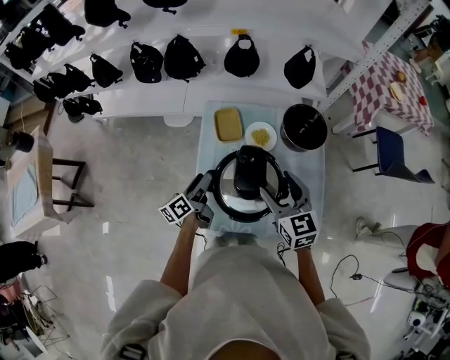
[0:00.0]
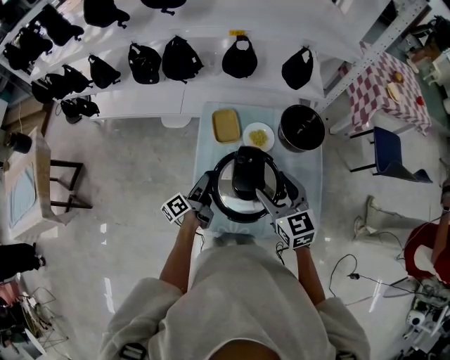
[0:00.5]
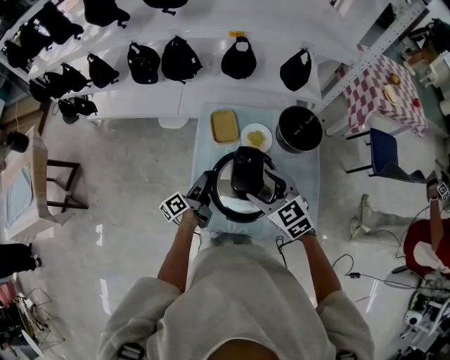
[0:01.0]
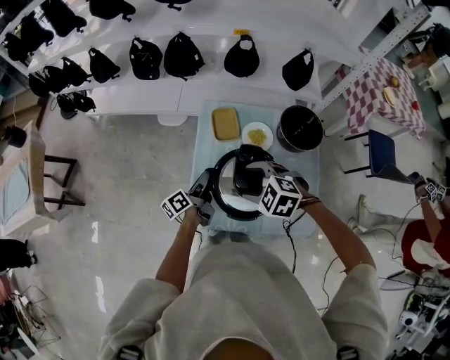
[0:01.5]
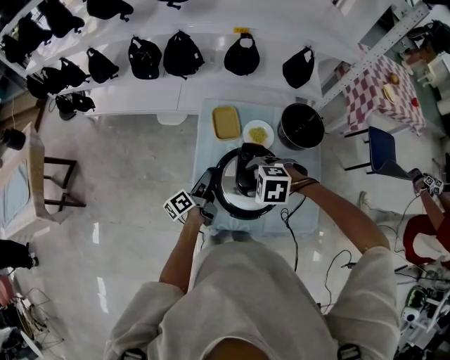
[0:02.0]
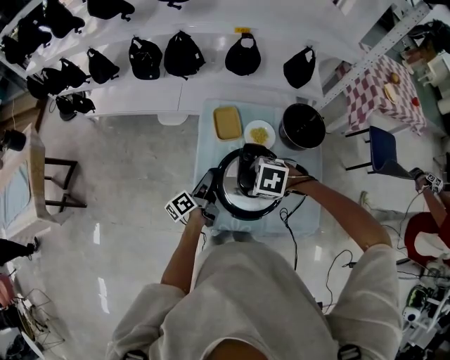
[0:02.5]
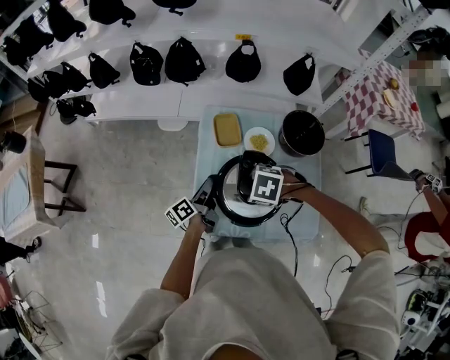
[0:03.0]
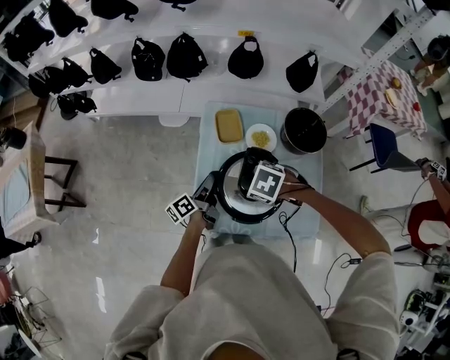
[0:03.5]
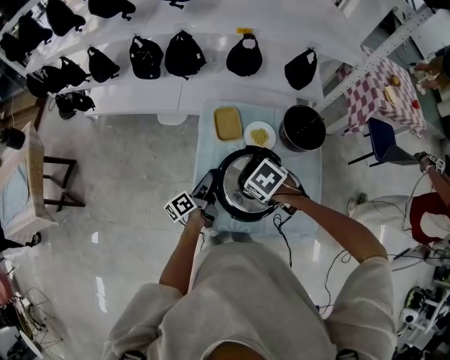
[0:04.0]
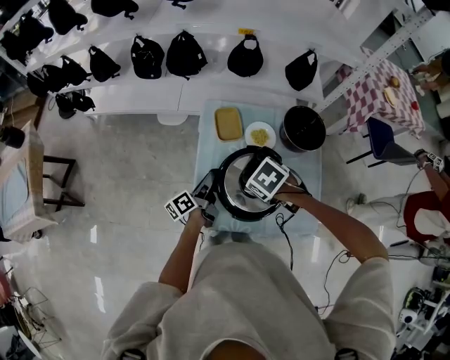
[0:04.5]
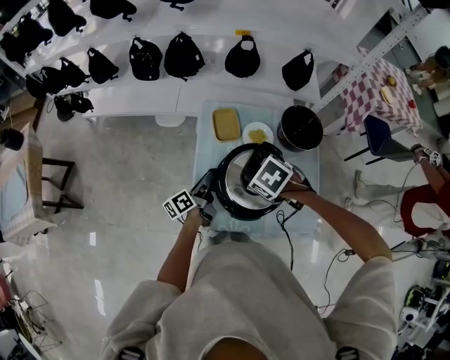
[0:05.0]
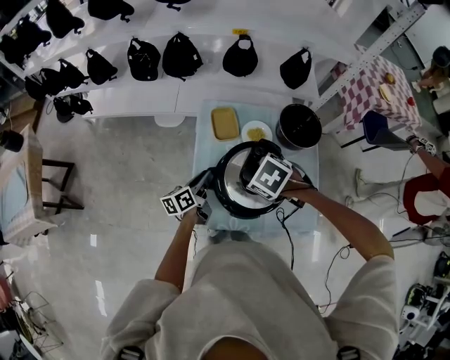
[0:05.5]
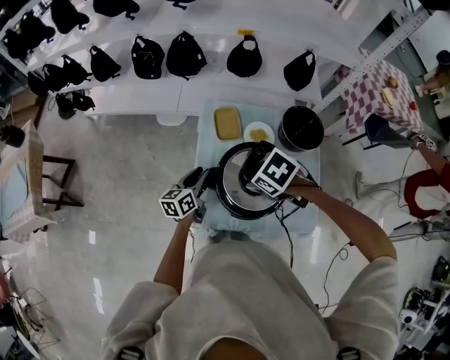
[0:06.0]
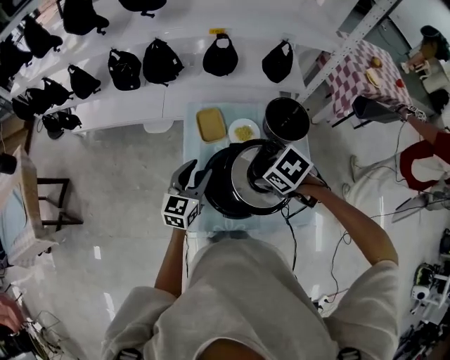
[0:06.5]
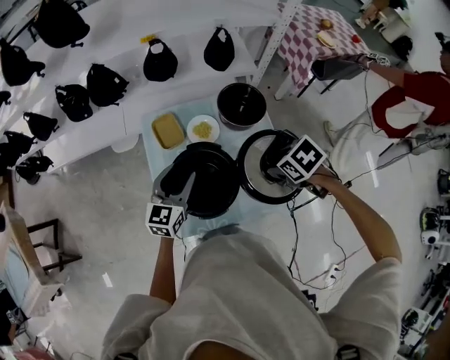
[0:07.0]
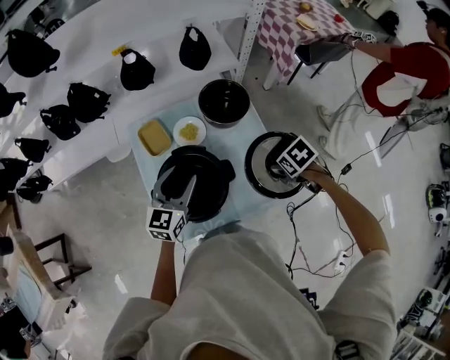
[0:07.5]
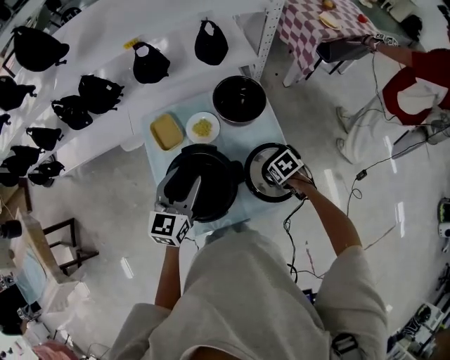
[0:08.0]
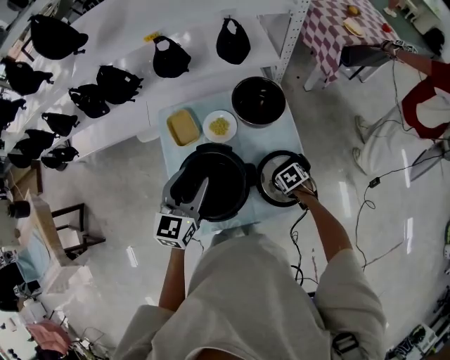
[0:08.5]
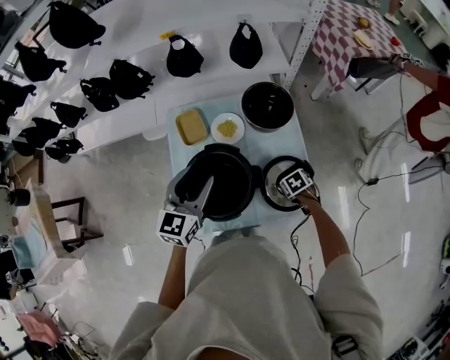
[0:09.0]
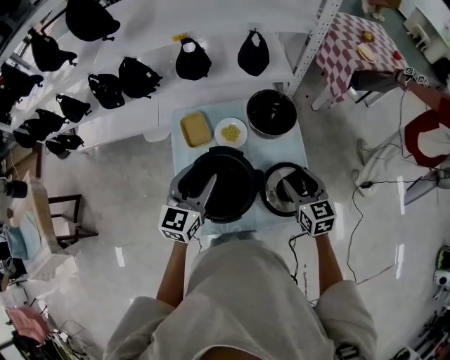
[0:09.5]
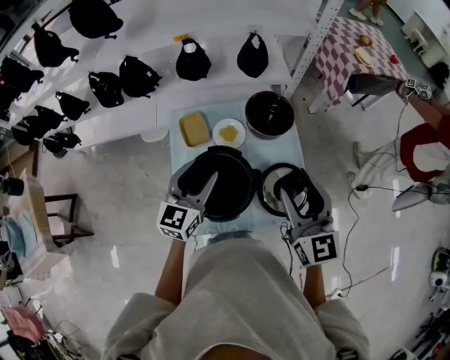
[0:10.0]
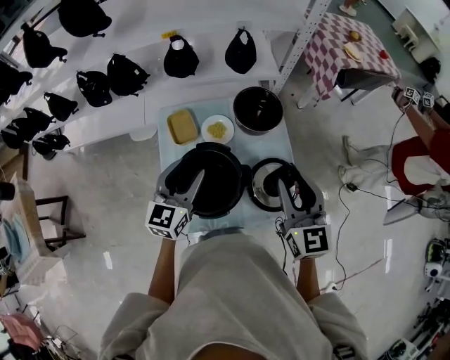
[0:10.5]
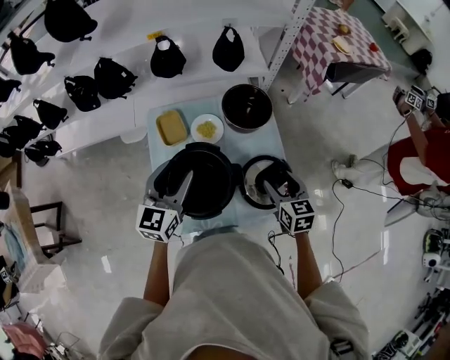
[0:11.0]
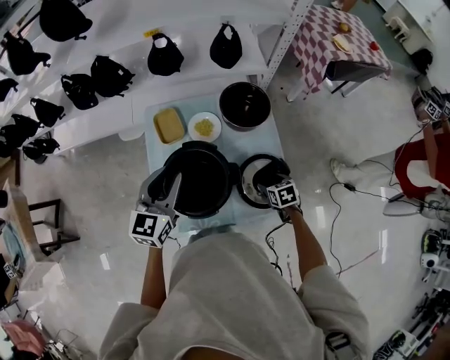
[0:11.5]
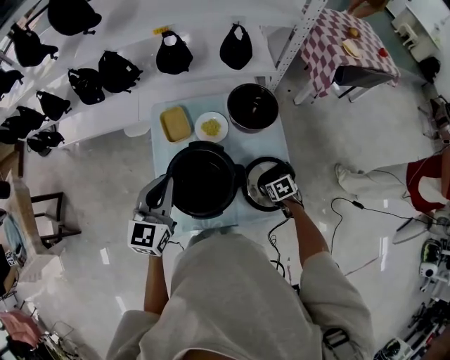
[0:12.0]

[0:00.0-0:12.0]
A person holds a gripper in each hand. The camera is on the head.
0:00.0 to 0:02.0: The right gripper travels downward by approximately 10 cm, and tips its fingers downward by approximately 50 degrees. The left gripper closes up.
0:02.0 to 0:04.0: The right gripper twists approximately 40 degrees clockwise, seen from behind.
0:04.0 to 0:06.0: The right gripper shifts roughly 5 cm upward. The left gripper swivels some 40 degrees.
0:06.0 to 0:08.0: The right gripper shifts by approximately 35 cm, and rotates approximately 40 degrees; the left gripper ends up roughly 20 cm from where it was, and rotates approximately 40 degrees.
0:08.0 to 0:10.0: The right gripper shifts about 35 cm upward, and angles its fingers upward, by roughly 70 degrees.
0:10.0 to 0:12.0: The right gripper goes approximately 40 cm downward, and tilts its fingers some 70 degrees downward; the left gripper ends up about 5 cm from where it was, and closes up.

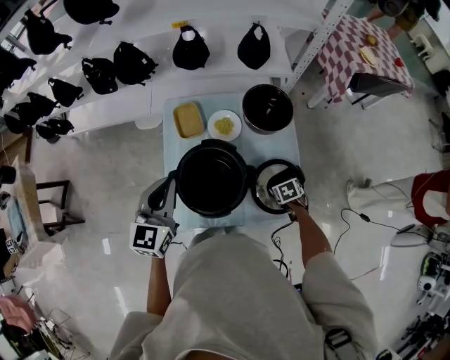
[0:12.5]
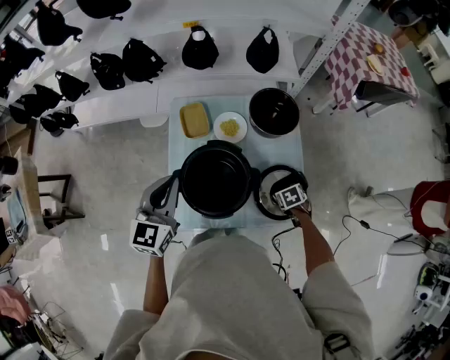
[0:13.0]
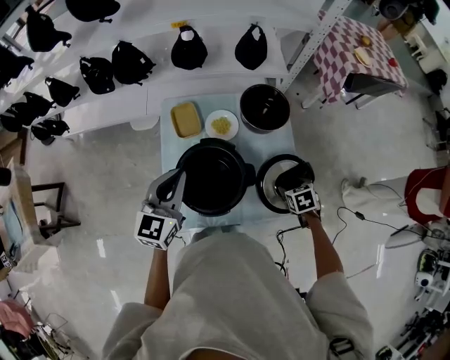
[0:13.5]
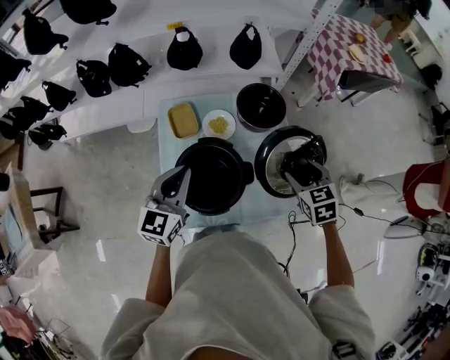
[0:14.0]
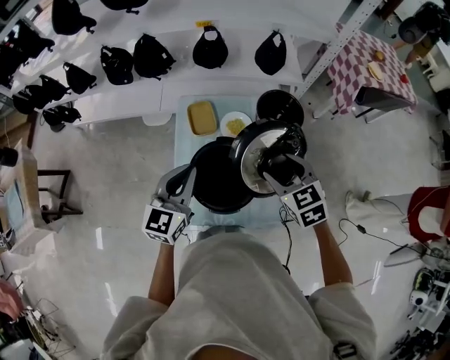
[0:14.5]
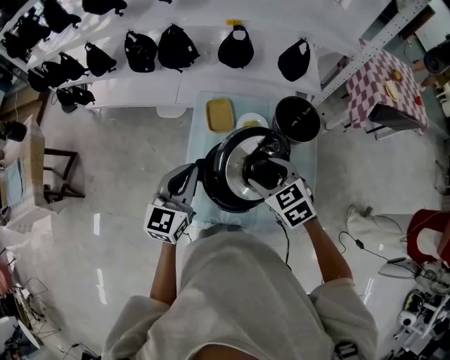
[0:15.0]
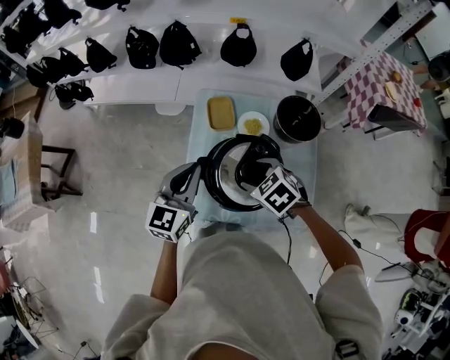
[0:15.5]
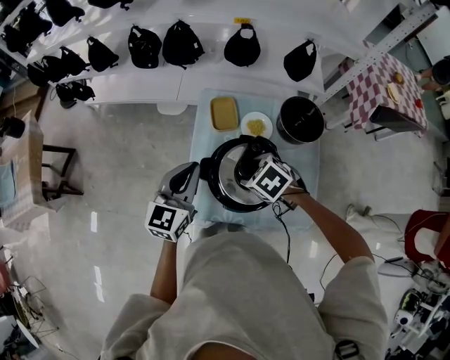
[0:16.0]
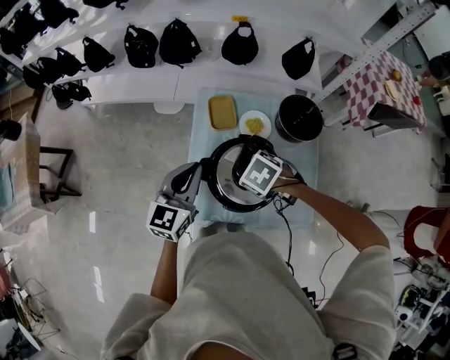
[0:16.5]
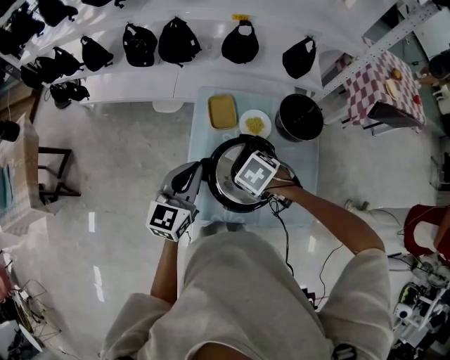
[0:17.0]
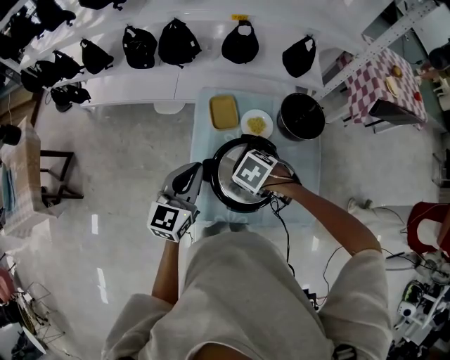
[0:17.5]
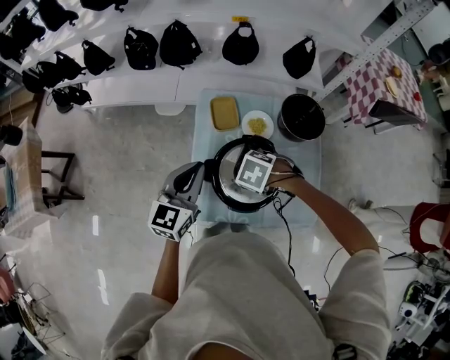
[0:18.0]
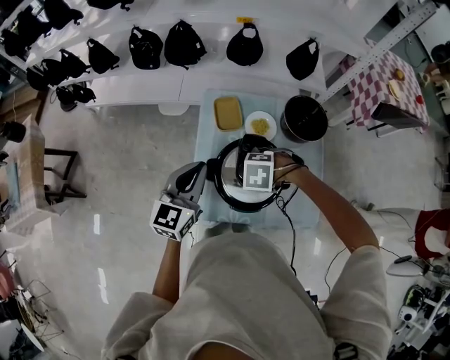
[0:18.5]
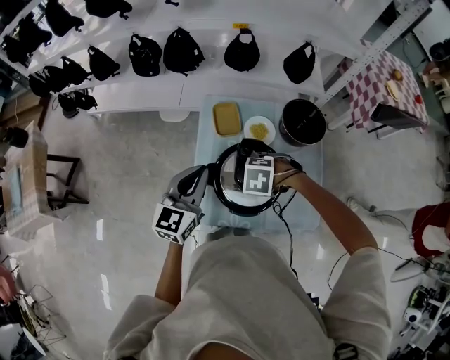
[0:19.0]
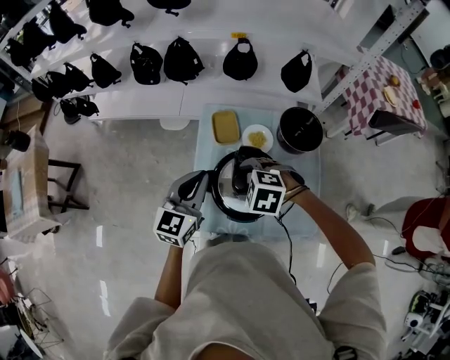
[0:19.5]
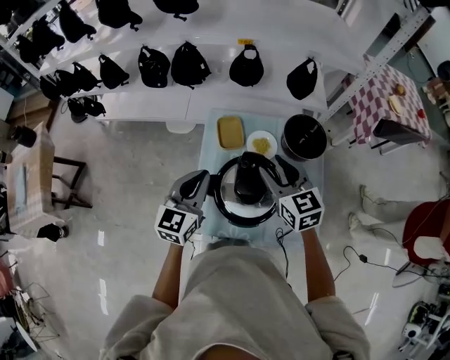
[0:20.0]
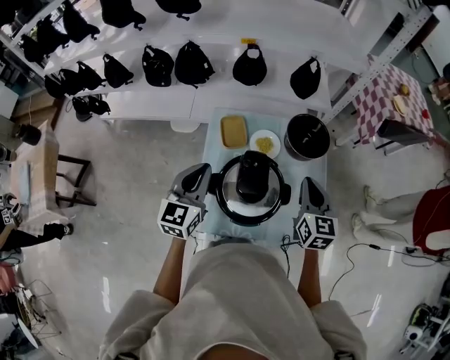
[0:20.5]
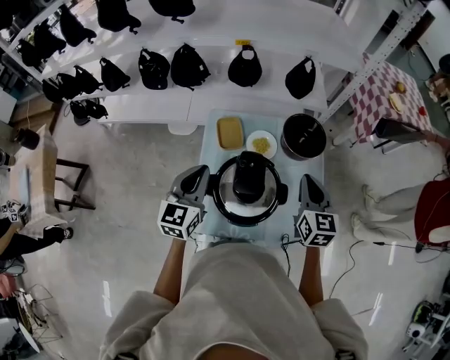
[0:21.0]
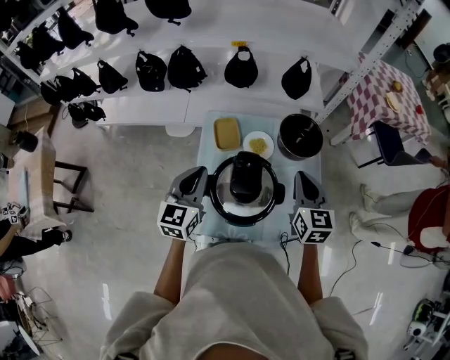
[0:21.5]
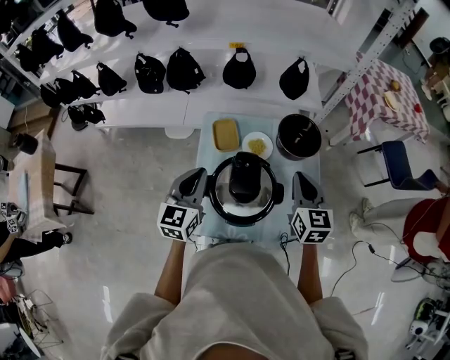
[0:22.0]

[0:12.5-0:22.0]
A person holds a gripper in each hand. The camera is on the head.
0:12.5 to 0:14.5: The right gripper goes approximately 30 cm upward, and points its fingers about 40 degrees further upward.
0:14.5 to 0:16.5: The left gripper shifts by approximately 5 cm. Meanwhile the right gripper ends up some 20 cm from where it was, and tips its fingers downward by roughly 40 degrees.
0:16.5 to 0:18.0: The grippers stay close to where they were, moving slightly.
0:18.0 to 0:20.0: The right gripper travels upward by some 15 cm, and tilts its fingers roughly 60 degrees upward.
0:20.0 to 0:22.0: The right gripper travels to the right by roughly 10 cm, rotates some 20 degrees, and closes its fingers.

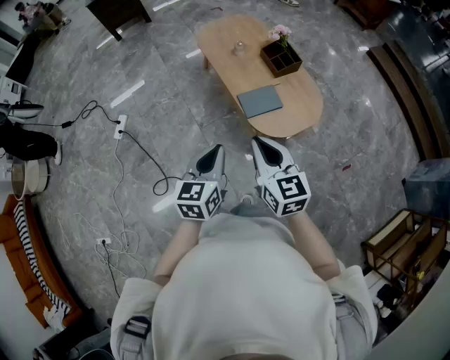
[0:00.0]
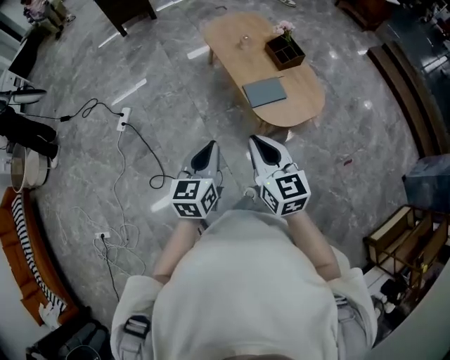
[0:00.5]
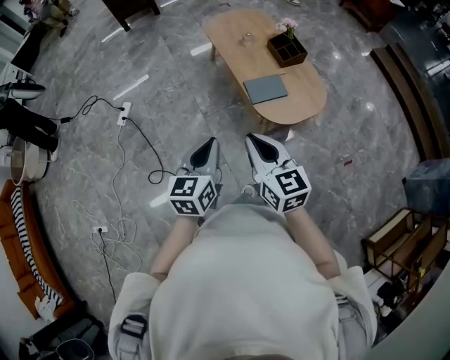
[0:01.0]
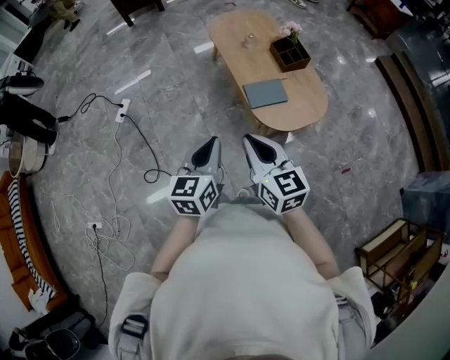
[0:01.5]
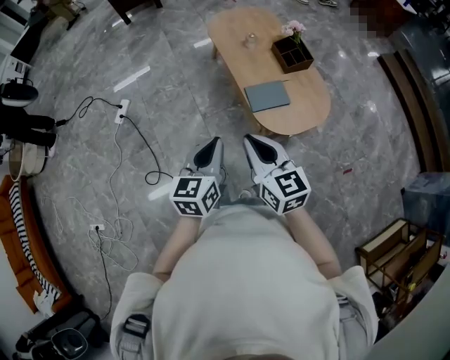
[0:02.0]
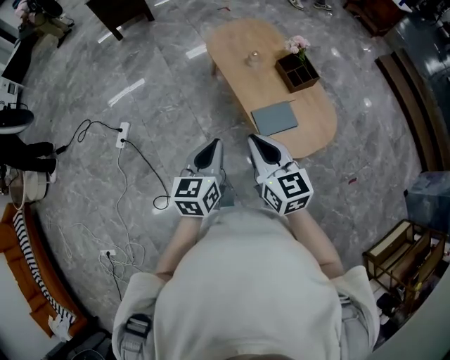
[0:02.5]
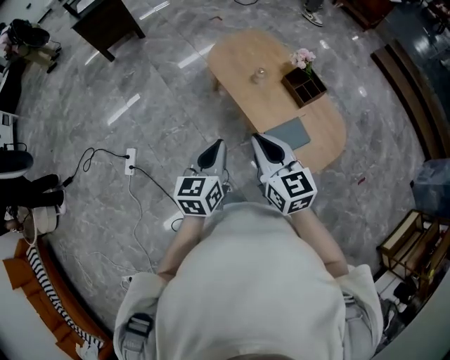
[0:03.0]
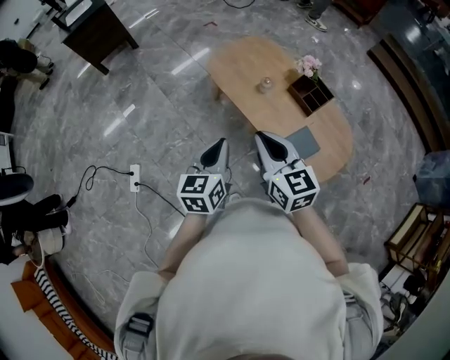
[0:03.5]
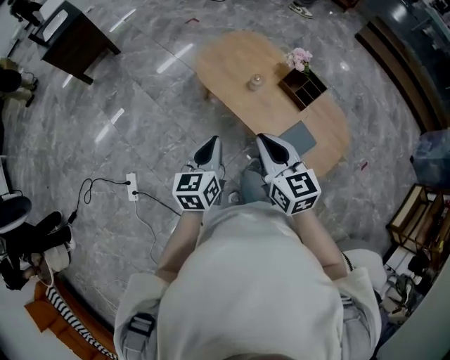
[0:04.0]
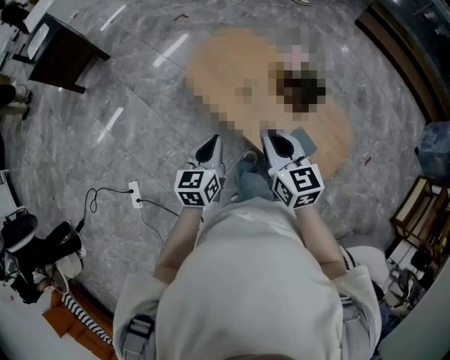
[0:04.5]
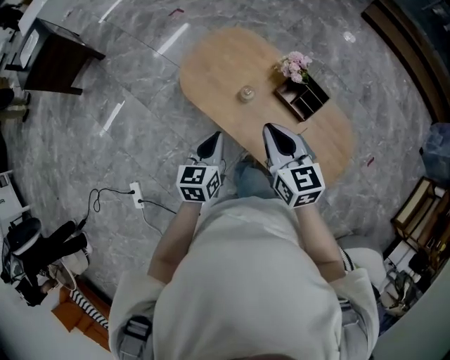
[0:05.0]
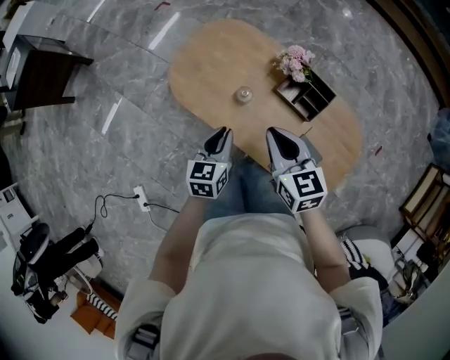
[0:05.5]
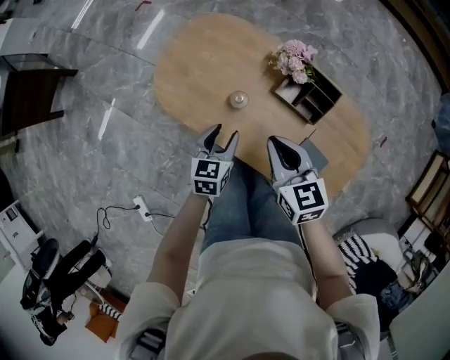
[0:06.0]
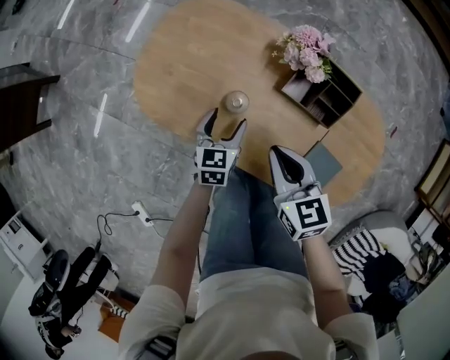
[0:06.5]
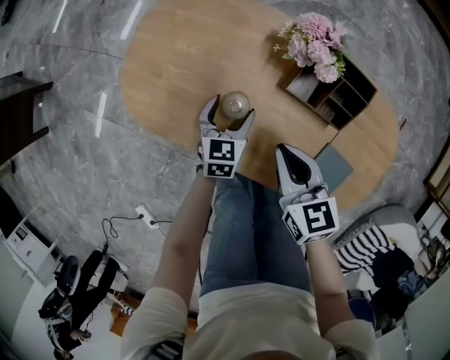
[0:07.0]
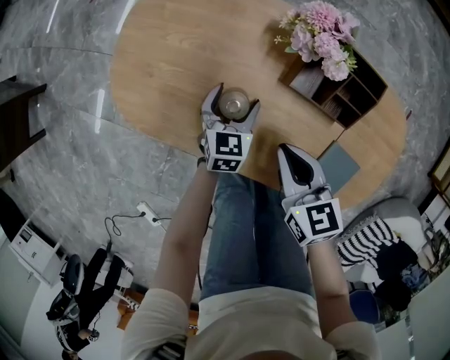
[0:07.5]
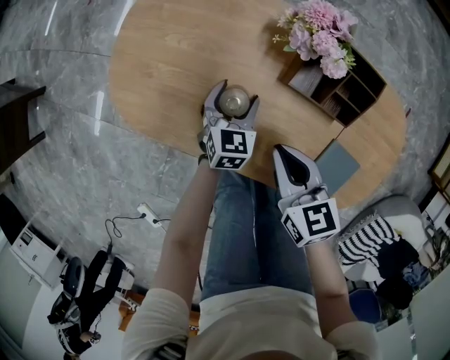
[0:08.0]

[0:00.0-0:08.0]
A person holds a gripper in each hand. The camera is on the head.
0:02.0 to 0:04.0: The right gripper moves forward, about 35 cm, and changes its angle by approximately 20 degrees; the left gripper goes approximately 40 cm forward and to the left.
0:04.0 to 0:06.0: Both grippers travel together forward, downward and to the right, roughly 35 cm. The left gripper turns by approximately 30 degrees, and opens its fingers.
0:06.0 to 0:08.0: The left gripper goes roughly 20 cm downward and forward, swivels some 20 degrees, and opens. The right gripper goes some 15 cm downward.
